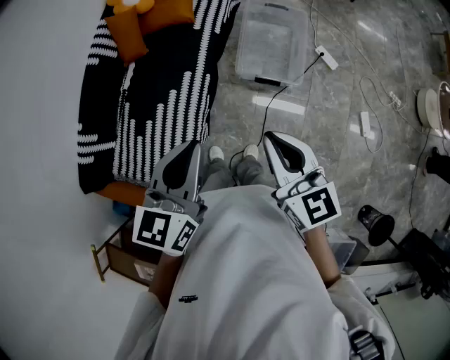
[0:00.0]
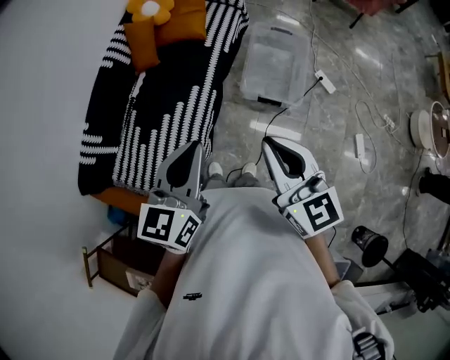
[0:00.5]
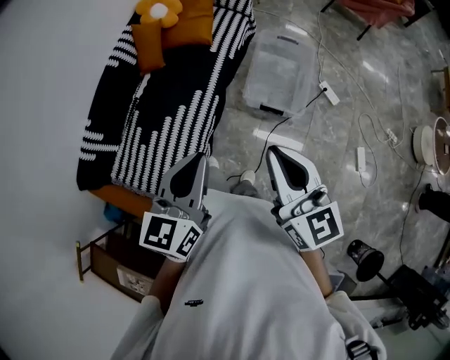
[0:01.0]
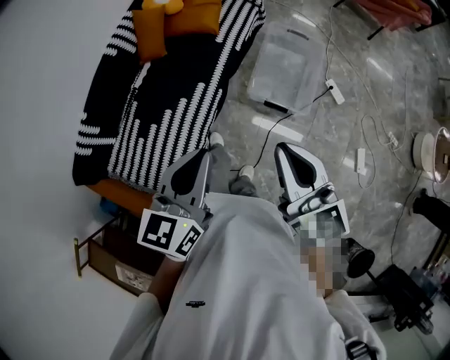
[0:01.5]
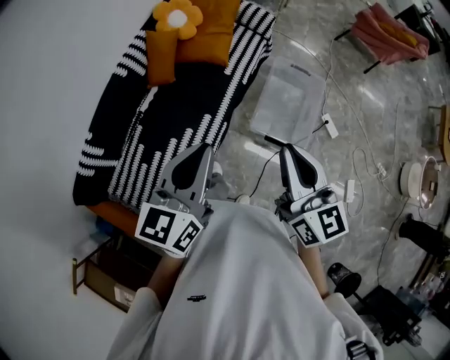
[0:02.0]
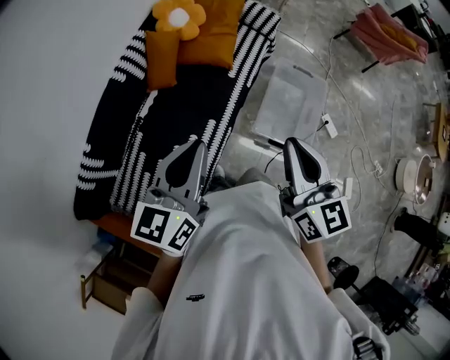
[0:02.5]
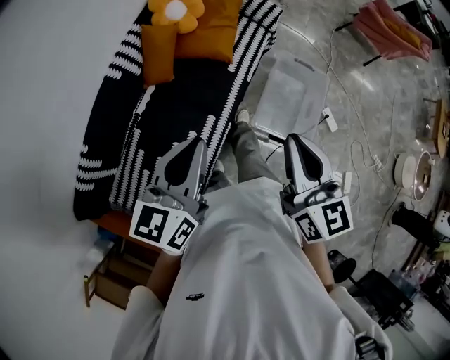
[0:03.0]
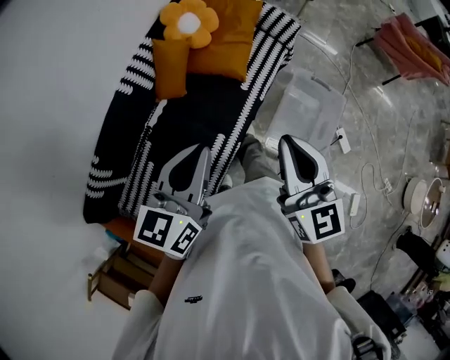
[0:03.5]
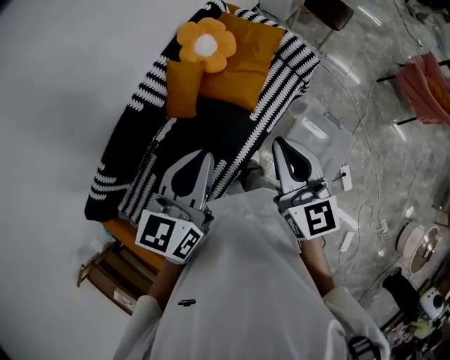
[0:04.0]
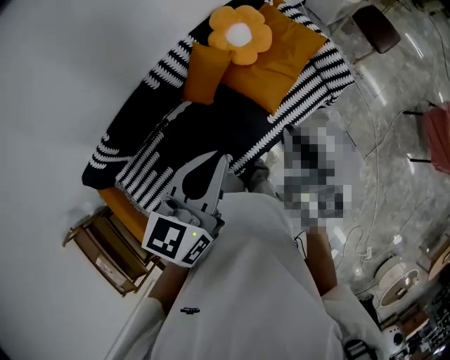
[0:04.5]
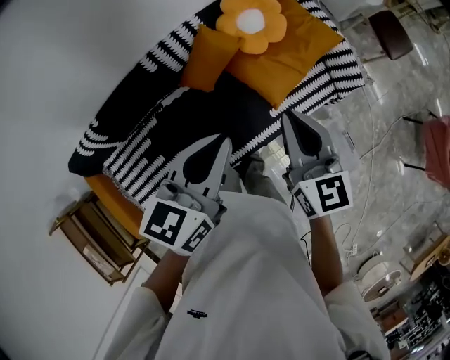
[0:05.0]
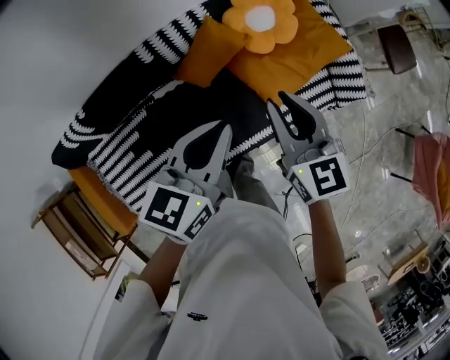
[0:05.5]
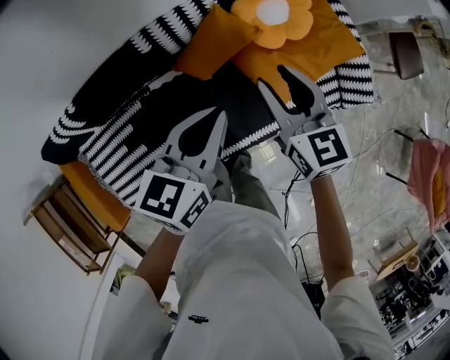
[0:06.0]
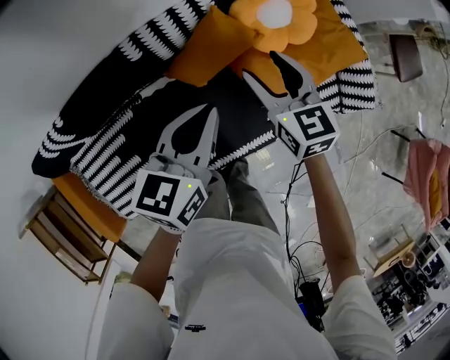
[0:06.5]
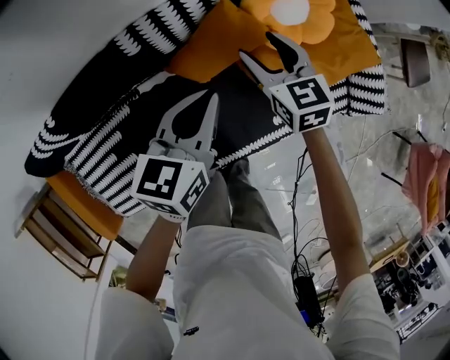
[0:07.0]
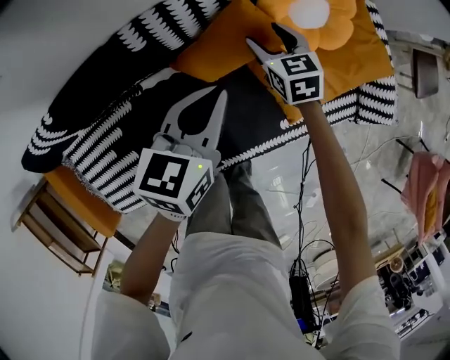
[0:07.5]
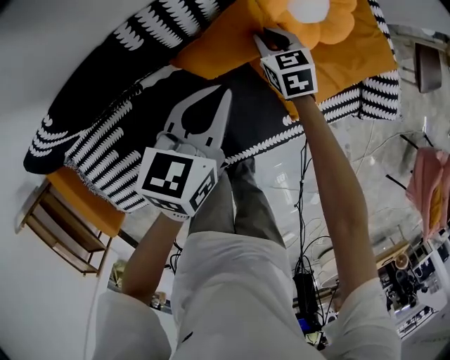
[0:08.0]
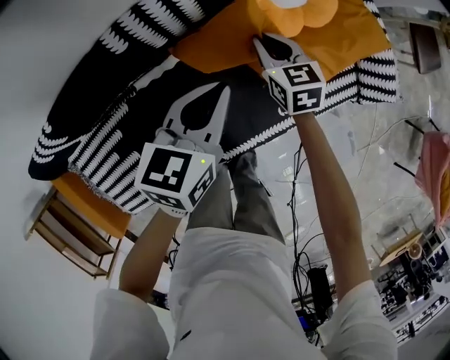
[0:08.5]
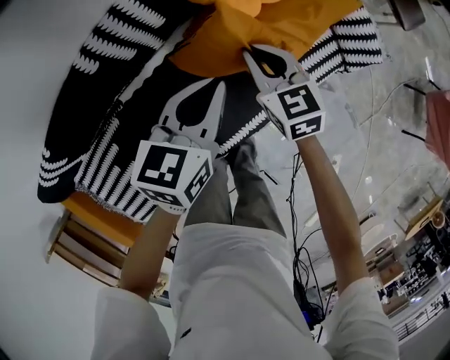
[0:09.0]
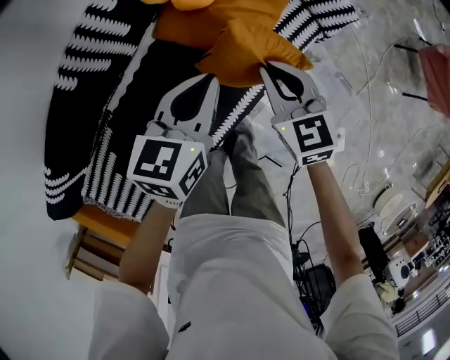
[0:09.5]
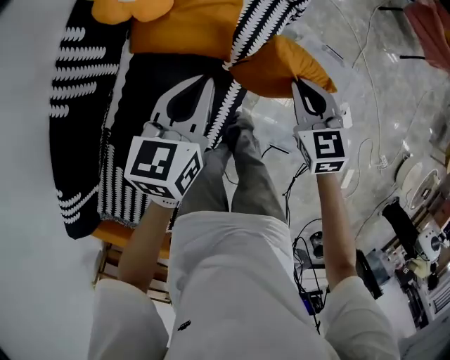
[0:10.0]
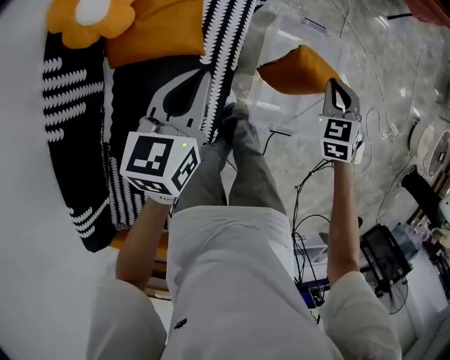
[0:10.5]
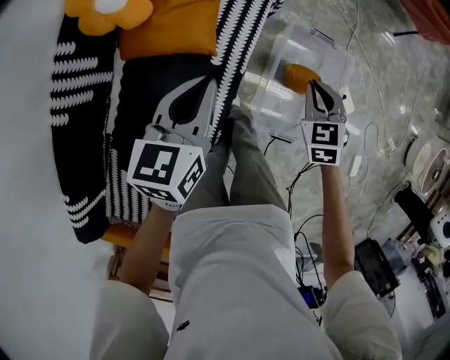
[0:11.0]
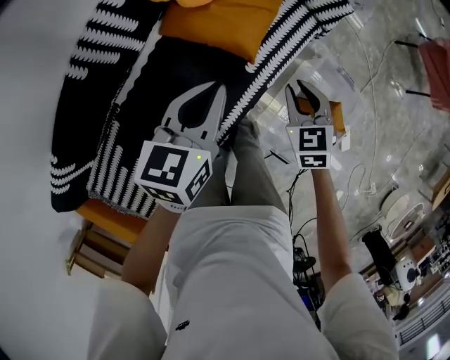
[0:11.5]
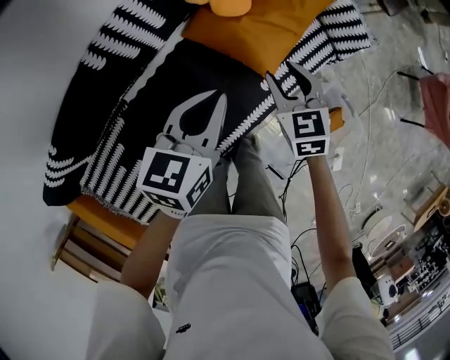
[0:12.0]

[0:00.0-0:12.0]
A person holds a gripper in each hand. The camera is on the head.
0:00.0 to 0:02.0: The right gripper goes roughly 20 cm forward, upward and to the left. The left gripper heads forward and to the left, covering approximately 15 cm.
0:02.0 to 0:04.0: Both grippers travel together forward, about 35 cm.
0:04.0 to 0:06.0: The right gripper shifts roughly 35 cm forward, downward and to the left, rotates some 30 degrees, and opens its fingers; the left gripper travels downward, forward and to the left by some 25 cm, and swivels about 20 degrees.
0:06.0 to 0:08.0: The left gripper is displaced downward and forward by roughly 20 cm; the right gripper goes approximately 35 cm downward and forward, and changes its angle by roughly 30 degrees.
0:08.0 to 0:10.0: The right gripper moves approximately 50 cm, and turns by approximately 40 degrees. The left gripper ends up approximately 25 cm from where it was, and swivels some 40 degrees.
0:10.0 to 0:12.0: The right gripper ends up about 20 cm from where it was, rotates approximately 20 degrees, and opens; the left gripper ends up some 15 cm from where it was.

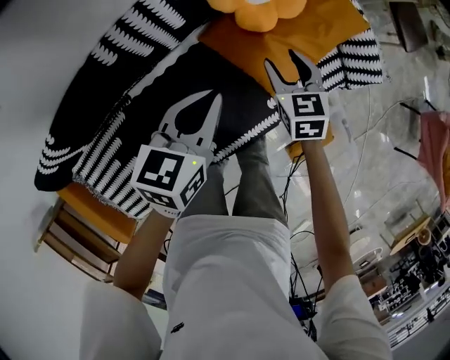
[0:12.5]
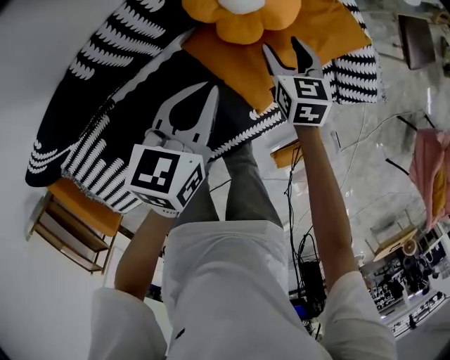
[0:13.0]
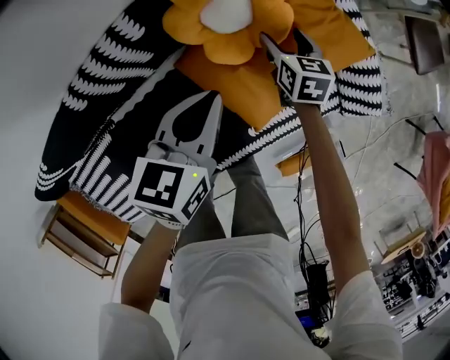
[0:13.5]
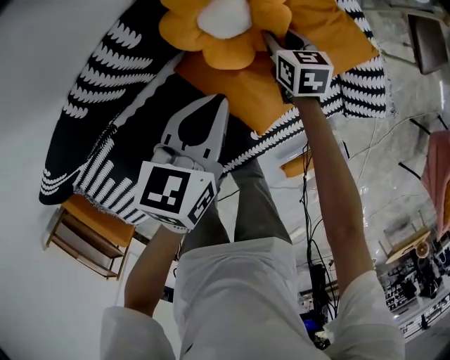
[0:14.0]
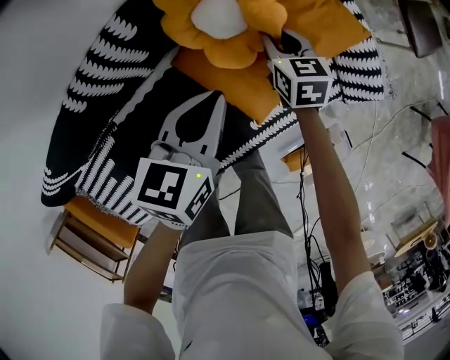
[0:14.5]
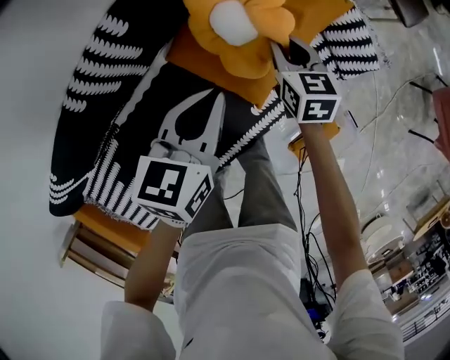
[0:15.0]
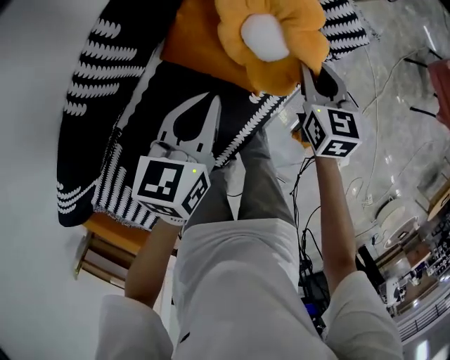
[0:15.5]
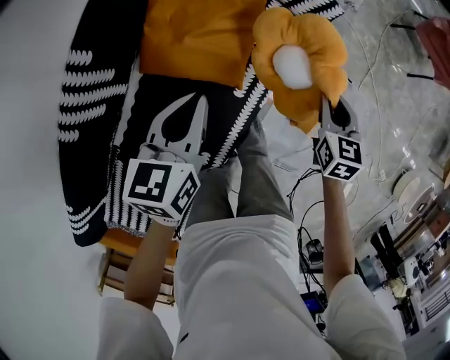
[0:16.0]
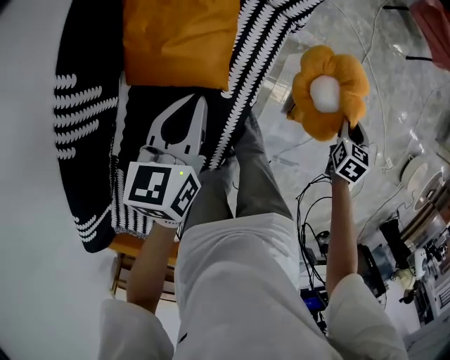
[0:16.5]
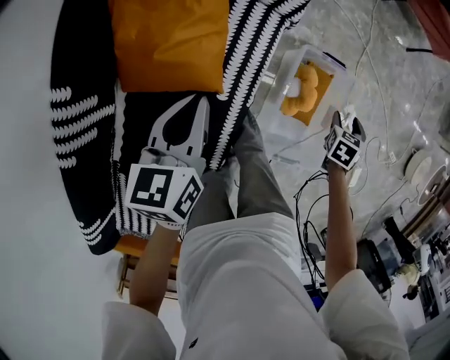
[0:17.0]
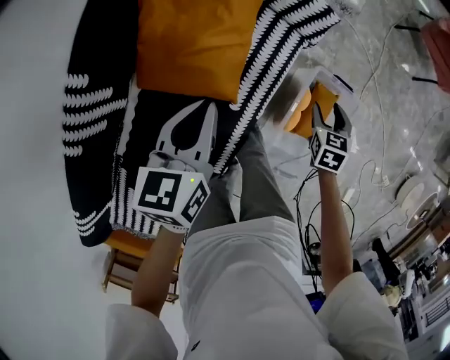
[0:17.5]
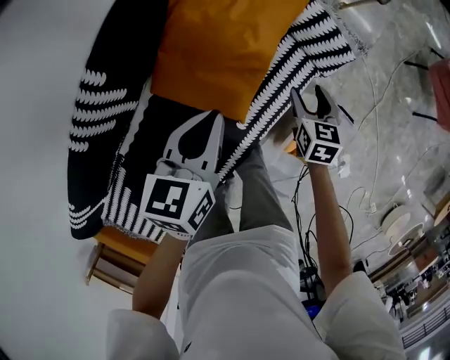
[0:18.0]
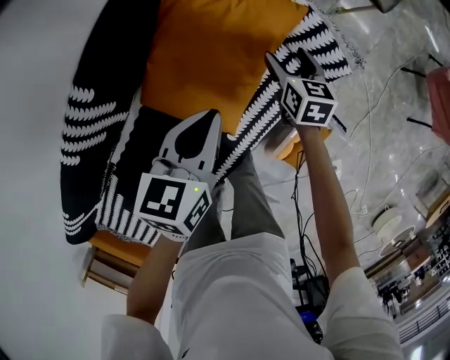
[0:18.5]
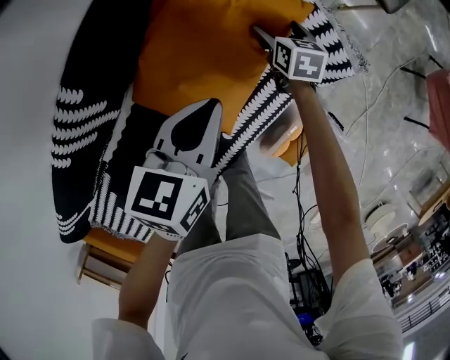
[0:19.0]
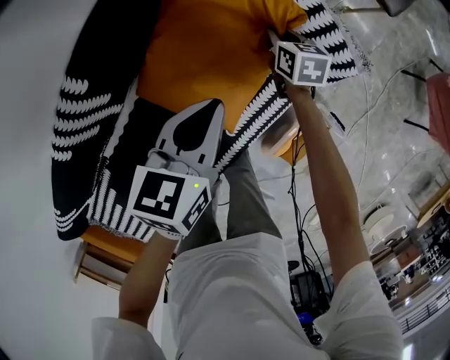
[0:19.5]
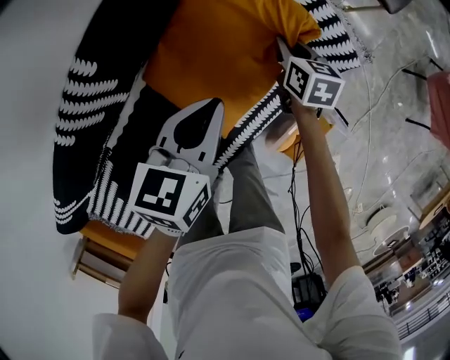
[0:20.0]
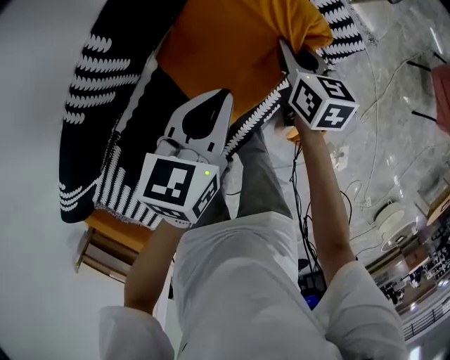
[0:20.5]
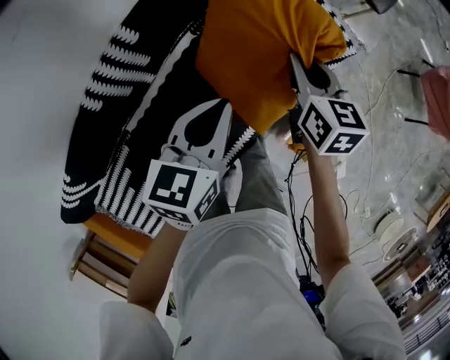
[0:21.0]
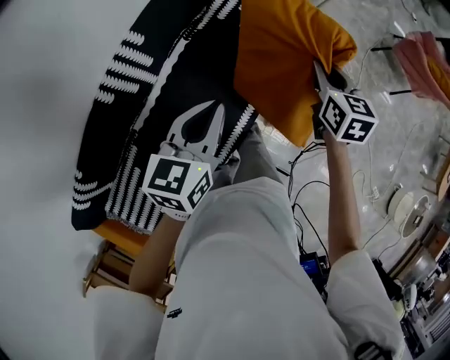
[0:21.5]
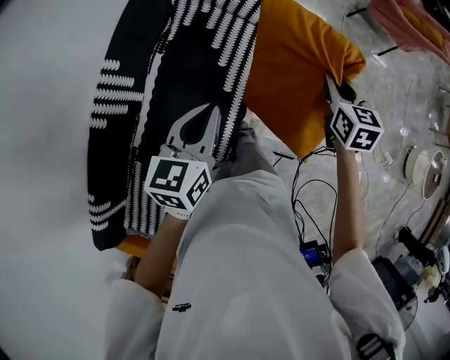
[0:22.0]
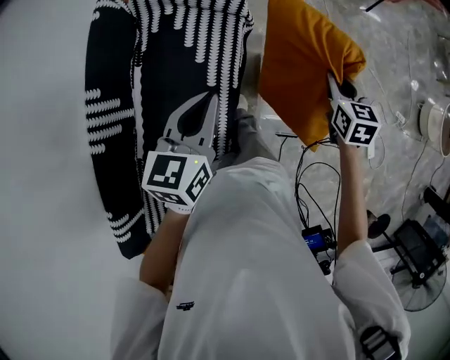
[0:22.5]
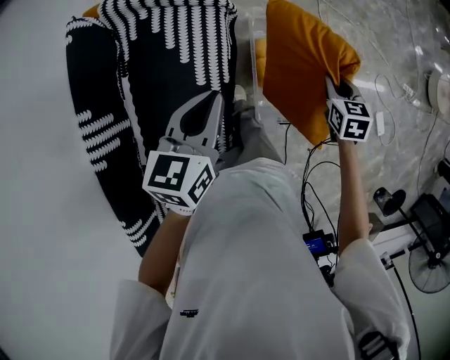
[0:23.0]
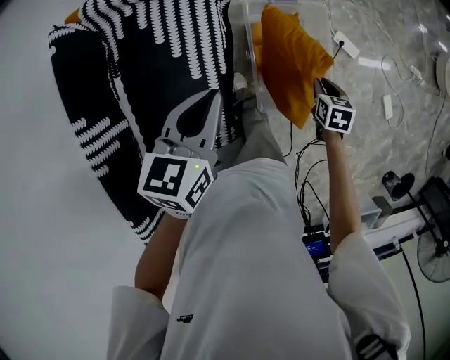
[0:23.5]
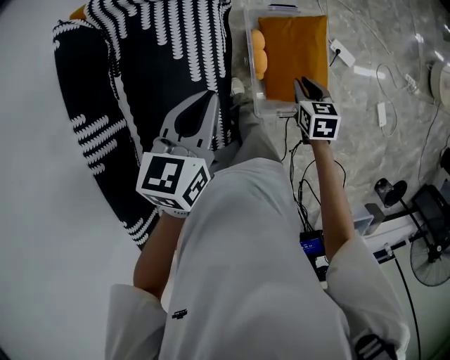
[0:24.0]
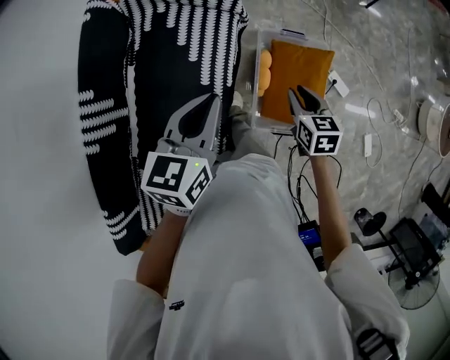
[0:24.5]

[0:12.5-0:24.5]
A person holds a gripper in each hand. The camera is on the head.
0:12.5 to 0:14.5: The left gripper heads forward and to the right, covering about 15 cm; the right gripper is displaced forward, downward and to the right by roughly 20 cm, and closes.
0:14.5 to 0:16.5: The right gripper travels upward and back again, about 10 cm each way, and turns by approximately 60 degrees. The left gripper changes place by some 15 cm, and turns by about 20 degrees.
0:16.5 to 0:18.5: The left gripper shifts by roughly 10 cm. The right gripper ends up about 50 cm from where it was, changes its angle by about 40 degrees, and opens.
0:18.5 to 0:20.5: The left gripper moves backward, approximately 10 cm, while the right gripper travels upward, backward and to the left by approximately 15 cm, and closes its fingers.
0:20.5 to 0:22.5: The left gripper ends up some 30 cm from where it was, and rotates about 30 degrees. The right gripper ends up about 50 cm from where it was, and changes its angle by about 40 degrees.
0:22.5 to 0:24.5: The right gripper travels backward by approximately 5 cm, and travels downward and back again, roughly 25 cm each way; the left gripper moves about 10 cm downward and comes back.

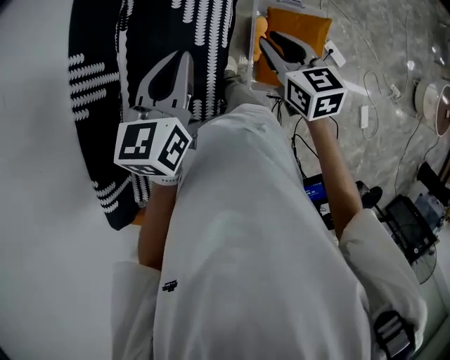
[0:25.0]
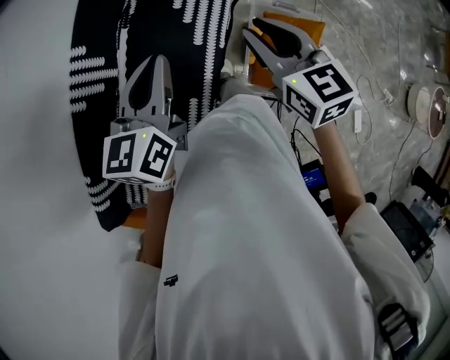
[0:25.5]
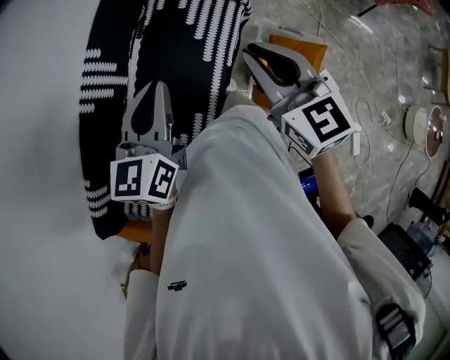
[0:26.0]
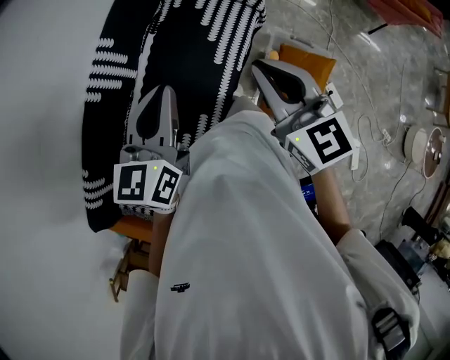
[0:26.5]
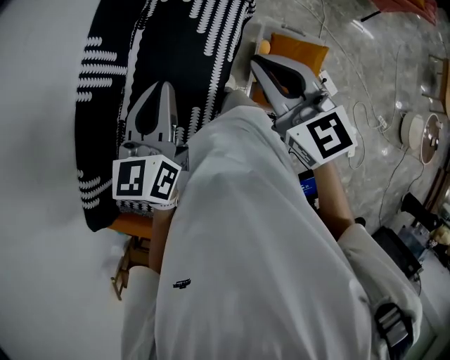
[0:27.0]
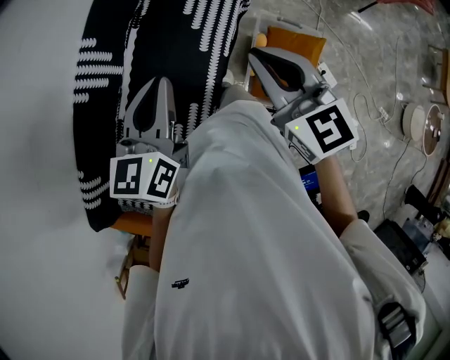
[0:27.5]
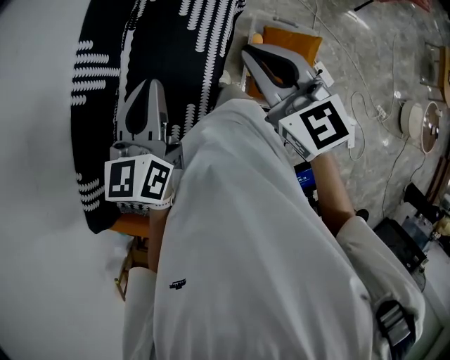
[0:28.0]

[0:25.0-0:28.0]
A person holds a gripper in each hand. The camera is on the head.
0:25.0 to 0:26.5: The right gripper moves upward, to the left and backward, approximately 20 cm, and turns by roughly 30 degrees. The left gripper is displaced to the left, backward and upward by about 15 cm.
0:26.5 to 0:28.0: The grippers stay close to where they were, moving slightly.
